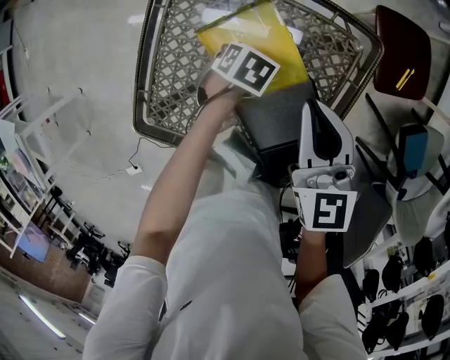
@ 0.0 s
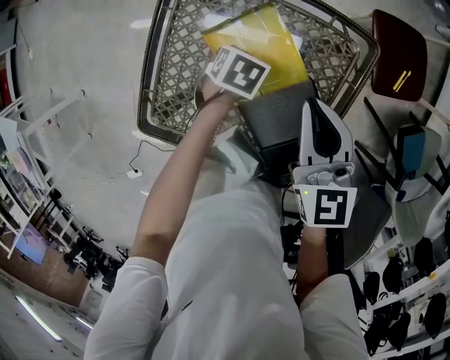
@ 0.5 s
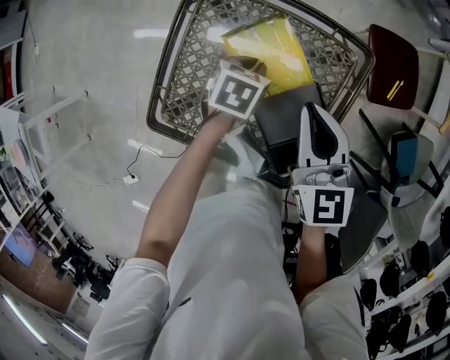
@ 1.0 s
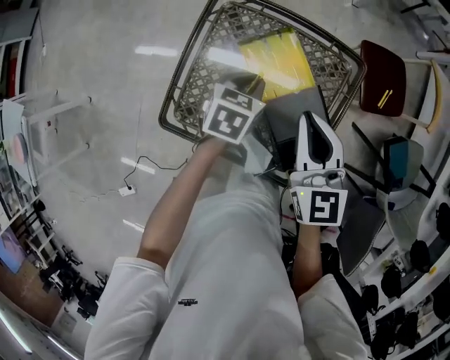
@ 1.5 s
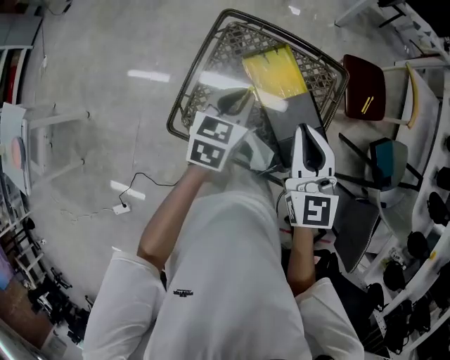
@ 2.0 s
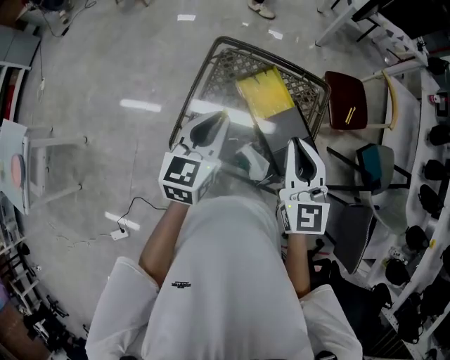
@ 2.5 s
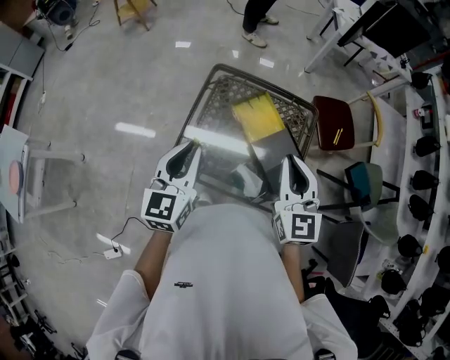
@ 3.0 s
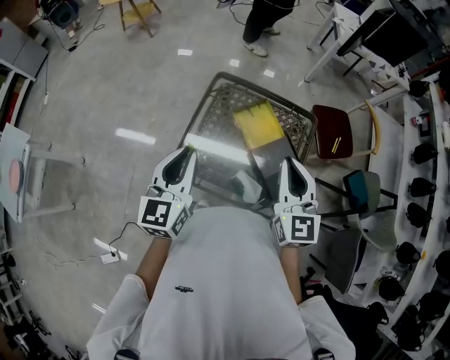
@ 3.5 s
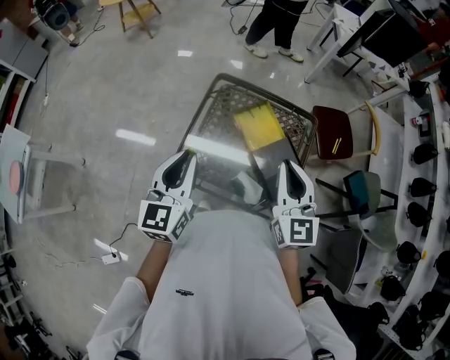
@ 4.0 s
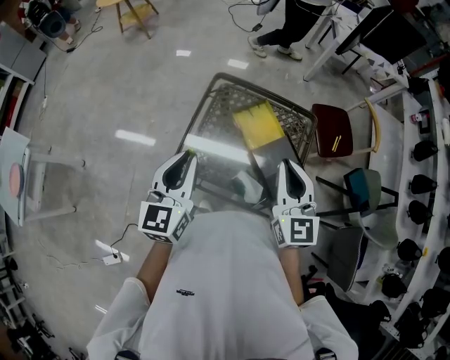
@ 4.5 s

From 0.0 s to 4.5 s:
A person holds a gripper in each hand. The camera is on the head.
From 0.0 s to 2.0 s: The right gripper travels upward by approximately 20 cm, while the left gripper goes about 35 cm upward, and points its fingers roughly 50 degrees further upward.
From 2.0 s to 4.5 s: The right gripper shifts some 10 cm upward and backward. Meanwhile the left gripper travels upward, to the left and backward by roughly 25 cm, and rotates approximately 30 degrees.

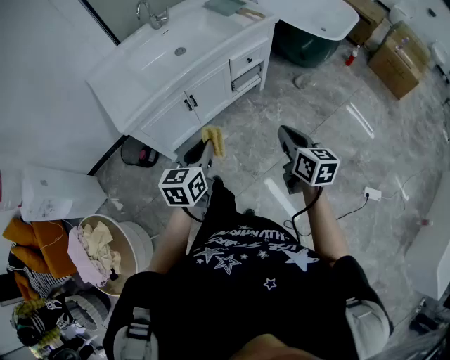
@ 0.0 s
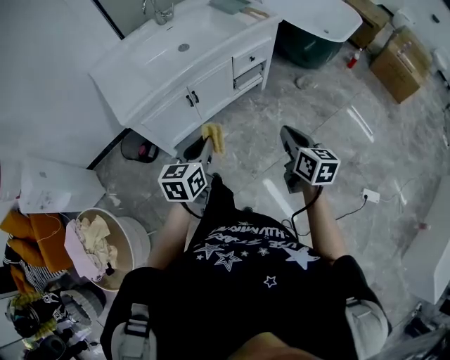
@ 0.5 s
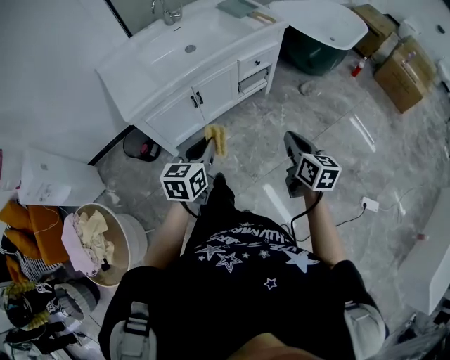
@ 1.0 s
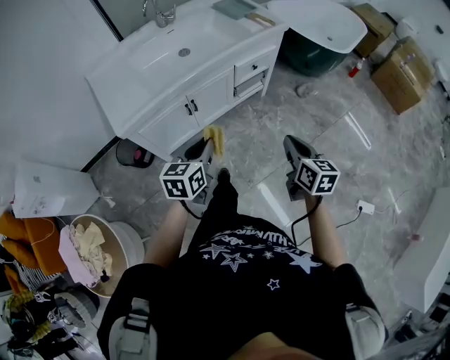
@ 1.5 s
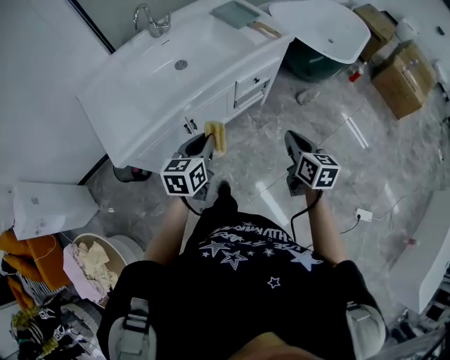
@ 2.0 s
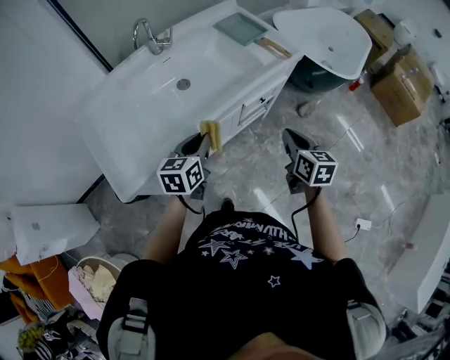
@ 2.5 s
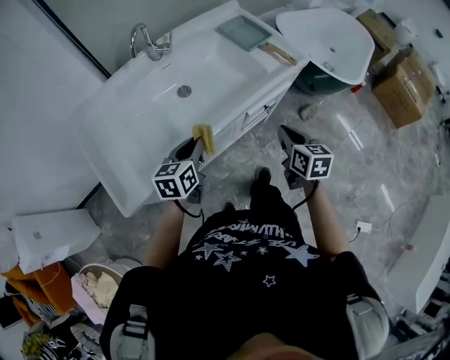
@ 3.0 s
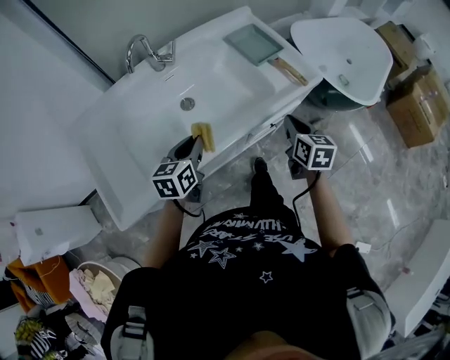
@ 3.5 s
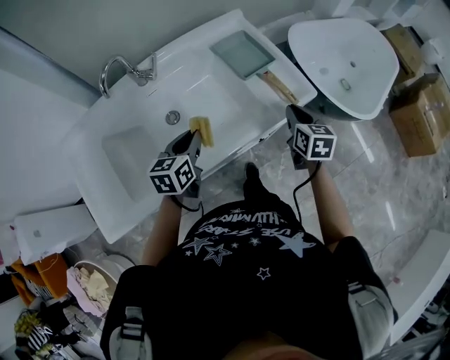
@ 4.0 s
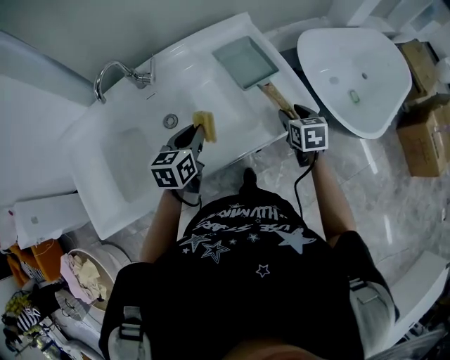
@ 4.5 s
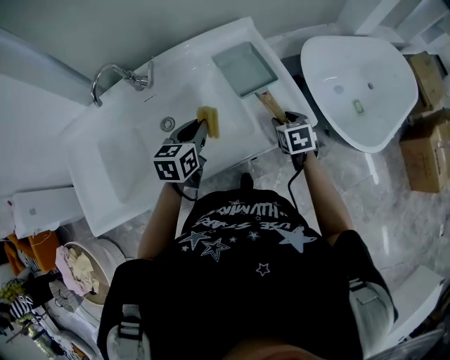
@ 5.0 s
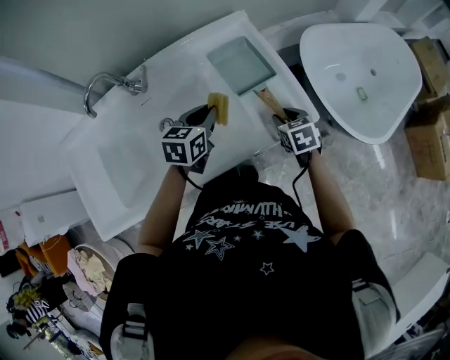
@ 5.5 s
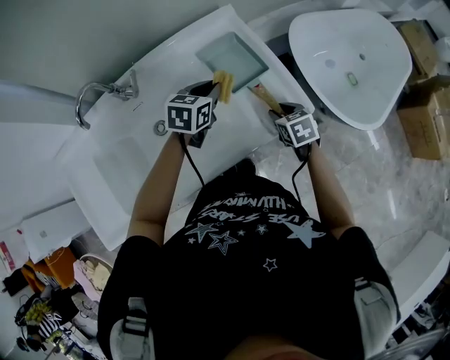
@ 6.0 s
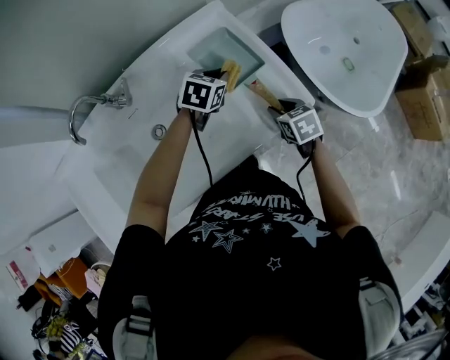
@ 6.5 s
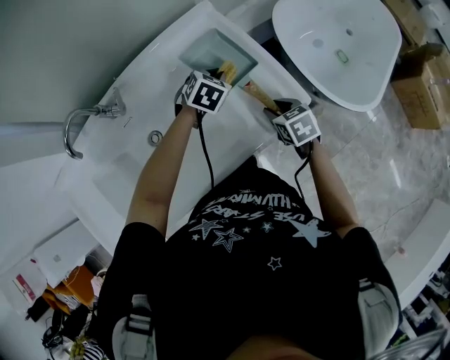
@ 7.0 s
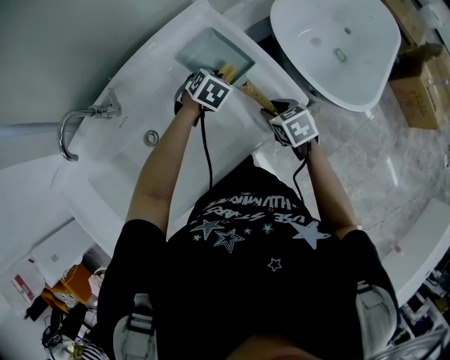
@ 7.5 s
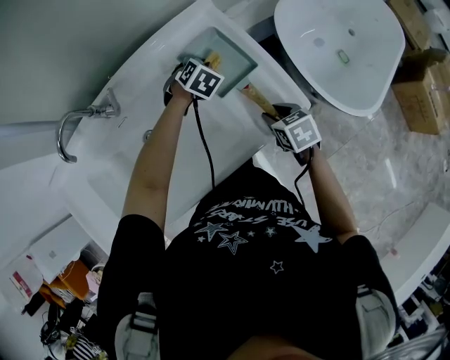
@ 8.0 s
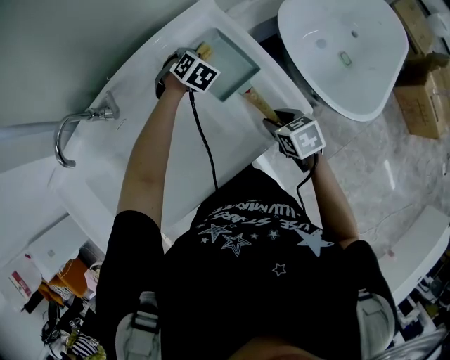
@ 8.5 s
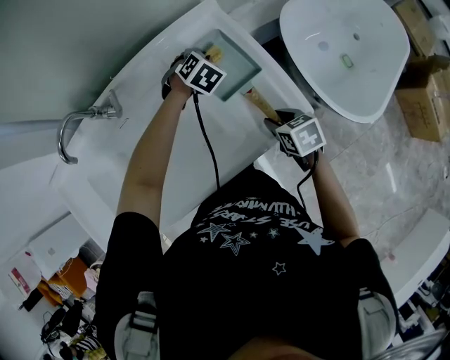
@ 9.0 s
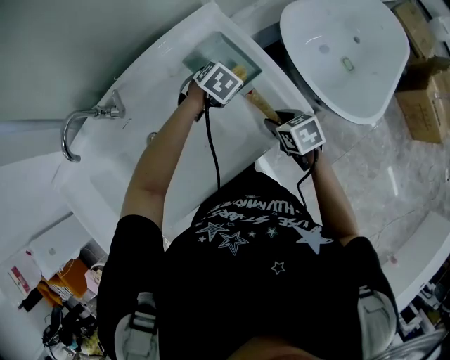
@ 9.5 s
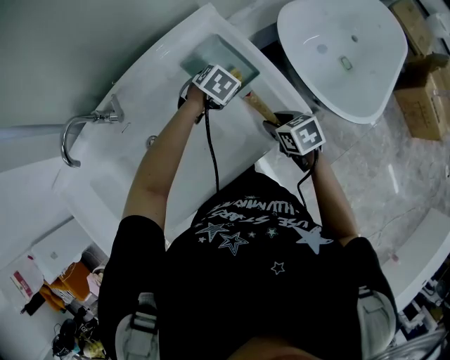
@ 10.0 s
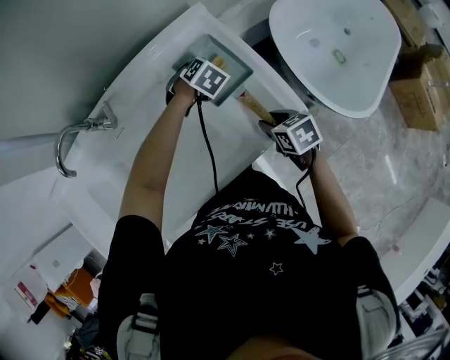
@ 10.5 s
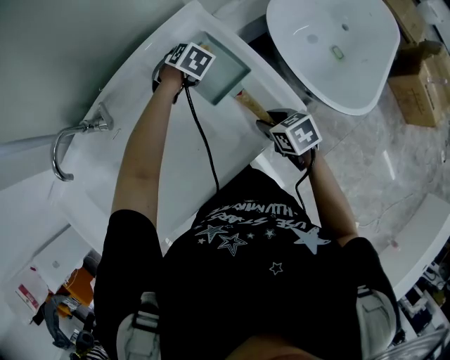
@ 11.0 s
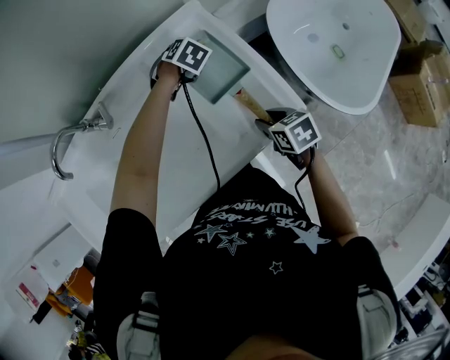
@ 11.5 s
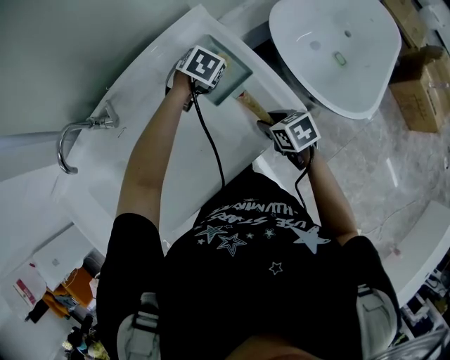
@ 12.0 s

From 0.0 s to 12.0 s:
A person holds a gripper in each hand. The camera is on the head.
From 0.0 s to 2.0 s: The grippers both shift forward by approximately 20 cm.
From 2.0 s to 4.0 s: The grippers both shift forward by roughly 40 cm.
From 4.0 s to 6.0 s: The right gripper goes some 15 cm forward and downward, turns by roughly 30 degrees, and opens its fingers, while the left gripper heads forward and to the right, covering about 25 cm.
From 6.0 s to 8.0 s: The left gripper shifts roughly 15 cm forward and downward, and rotates about 40 degrees.
From 8.0 s to 10.0 s: The left gripper changes place by roughly 5 cm.
From 10.0 s to 12.0 s: The left gripper heads forward, covering roughly 5 cm.

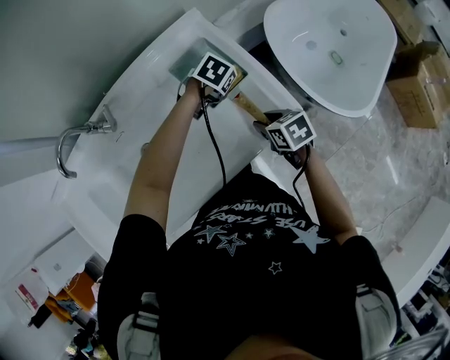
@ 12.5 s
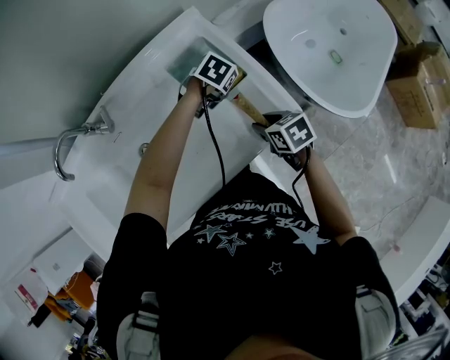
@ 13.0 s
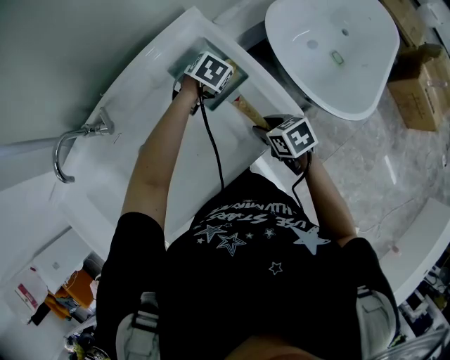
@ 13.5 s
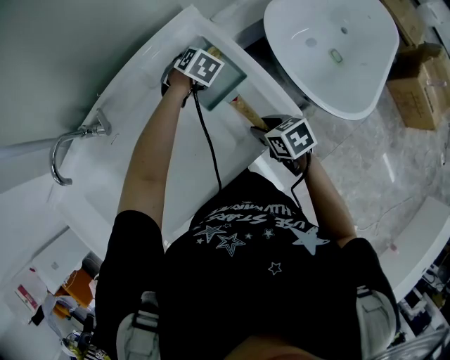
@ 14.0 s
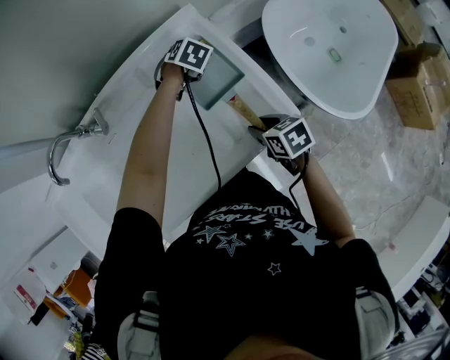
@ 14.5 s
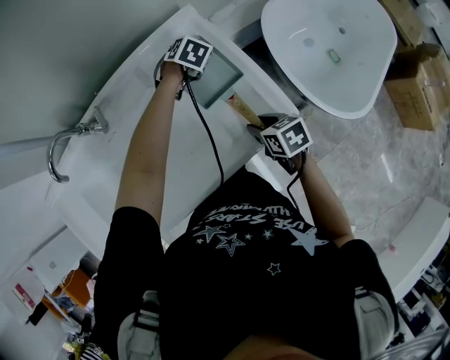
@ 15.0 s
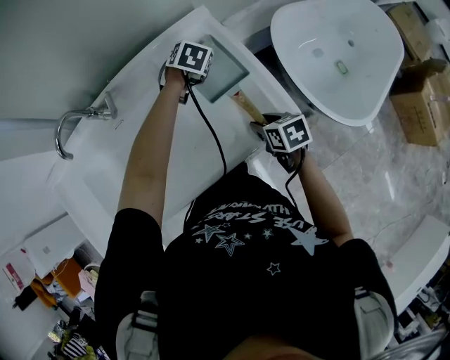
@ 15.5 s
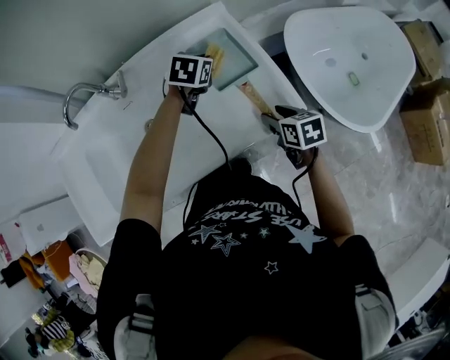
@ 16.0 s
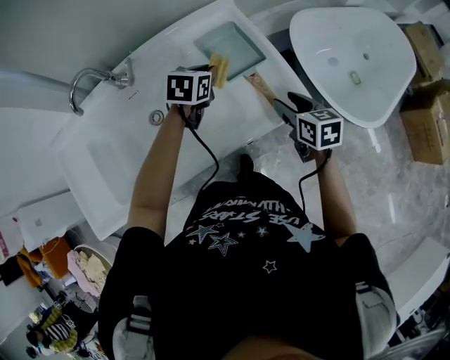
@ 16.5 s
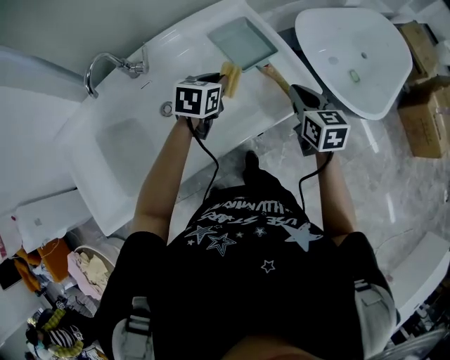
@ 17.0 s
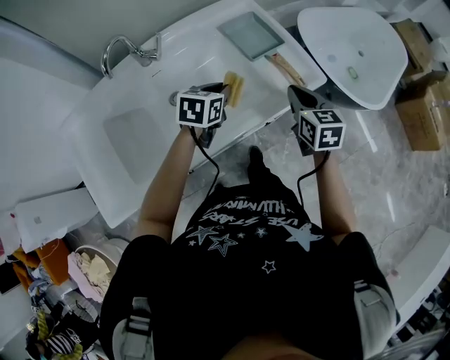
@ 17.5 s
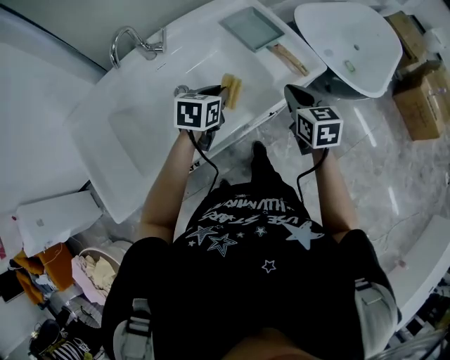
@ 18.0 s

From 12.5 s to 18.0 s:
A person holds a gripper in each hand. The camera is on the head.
From 12.5 s to 14.5 s: The left gripper travels forward by about 10 cm.
From 14.5 s to 16.0 s: The left gripper travels upward, backward and to the left by approximately 15 cm, and swivels about 20 degrees.
From 16.0 s to 18.0 s: The left gripper travels backward by about 30 cm; the right gripper is displaced backward, upward and to the left by roughly 20 cm, rotates roughly 30 degrees, and closes up.

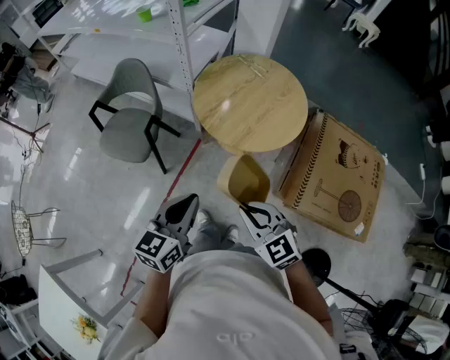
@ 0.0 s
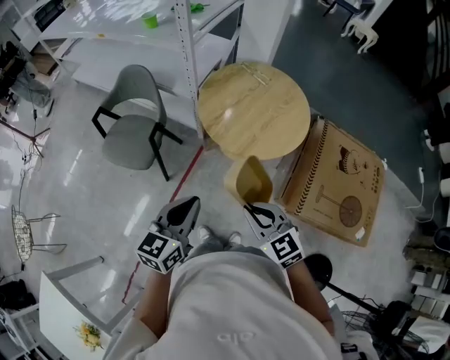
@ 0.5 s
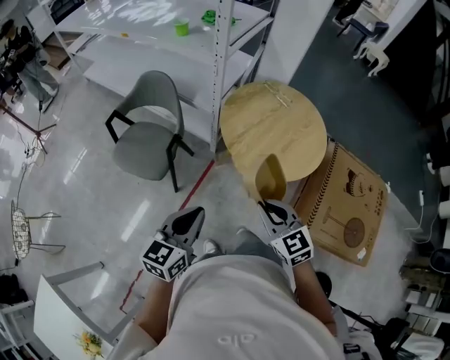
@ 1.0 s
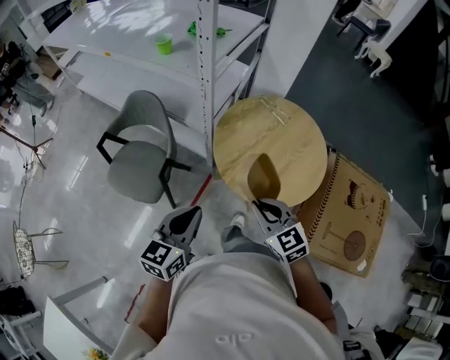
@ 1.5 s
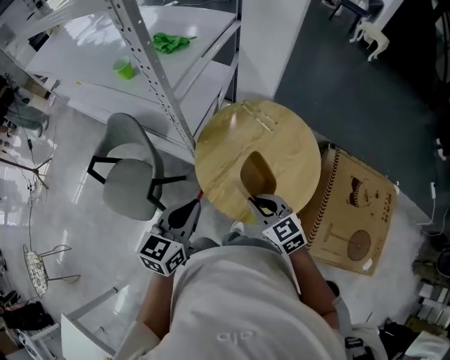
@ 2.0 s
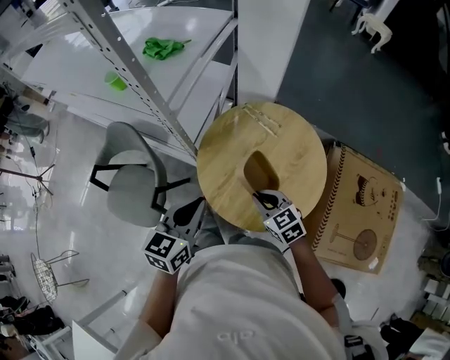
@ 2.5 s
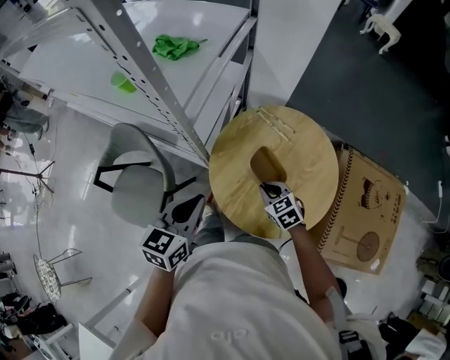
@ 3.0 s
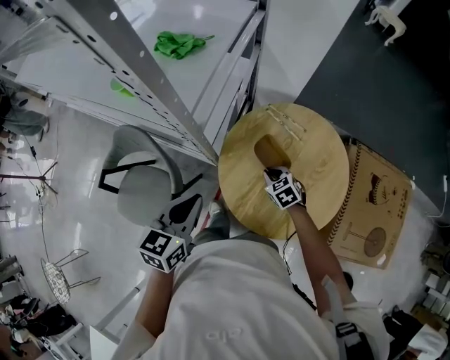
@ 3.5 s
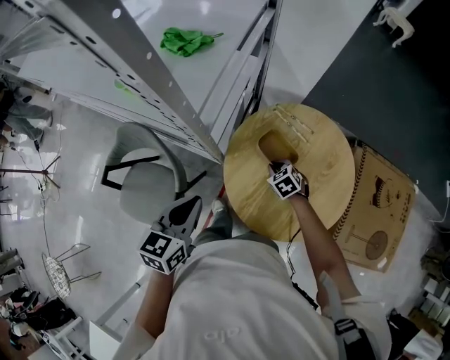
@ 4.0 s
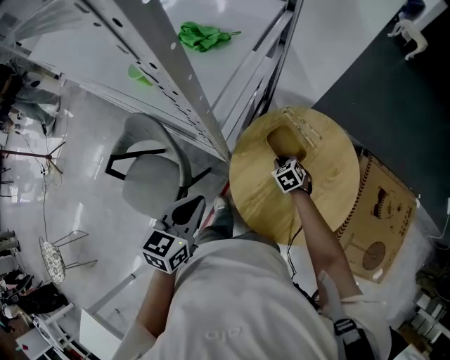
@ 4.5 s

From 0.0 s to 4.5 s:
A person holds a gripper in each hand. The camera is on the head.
From 0.0 s to 2.0 s: Both grippers move forward, approximately 35 cm.
From 2.0 s to 4.5 s: The left gripper travels forward and to the left by some 20 cm, while the right gripper travels forward and downward by some 35 cm, and tips its fingers downward by some 30 degrees.
